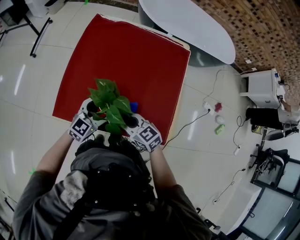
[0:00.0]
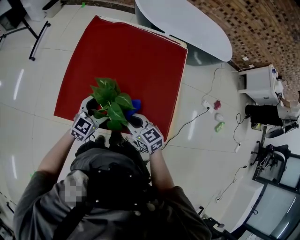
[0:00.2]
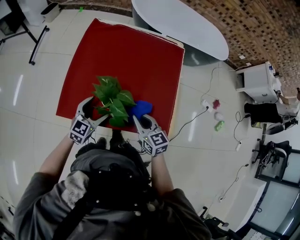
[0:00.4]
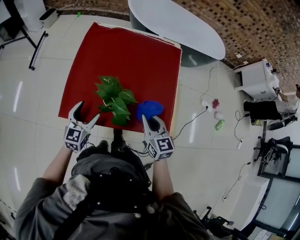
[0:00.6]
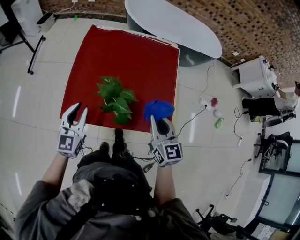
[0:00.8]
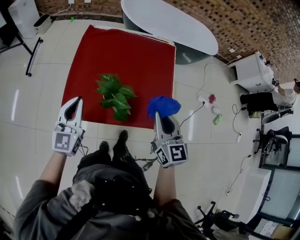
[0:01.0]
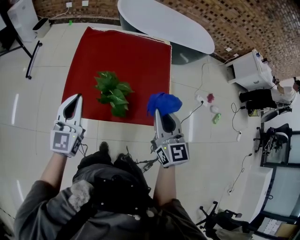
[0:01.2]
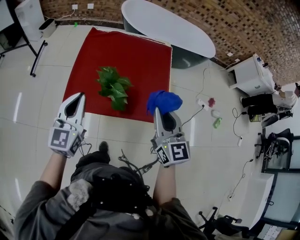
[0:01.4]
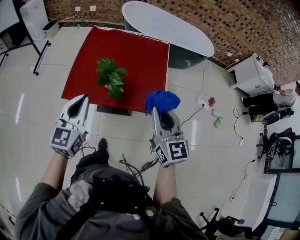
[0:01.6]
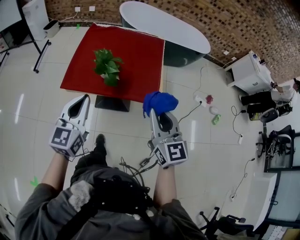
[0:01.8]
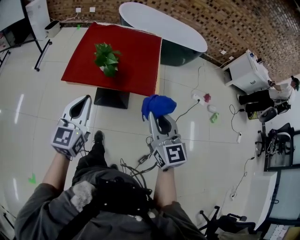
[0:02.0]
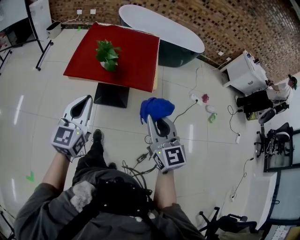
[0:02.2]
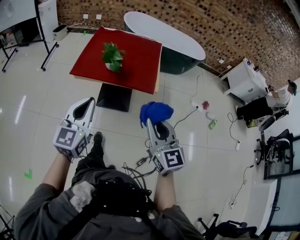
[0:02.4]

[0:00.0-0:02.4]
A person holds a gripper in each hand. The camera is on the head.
0:00.0 to 0:01.2: The right gripper heads upward and to the right, covering some 25 cm, and turns by approximately 50 degrees; the left gripper travels upward and to the left by approximately 25 cm, turns by approximately 30 degrees, and closes.
0:01.2 to 0:02.4: Both grippers are carried backward, roughly 50 cm.

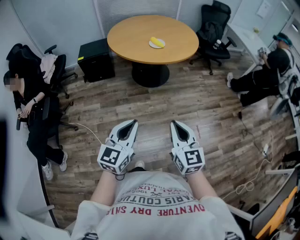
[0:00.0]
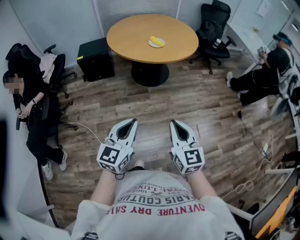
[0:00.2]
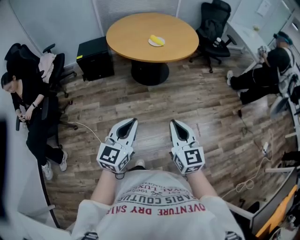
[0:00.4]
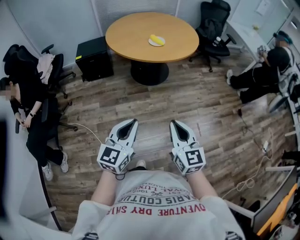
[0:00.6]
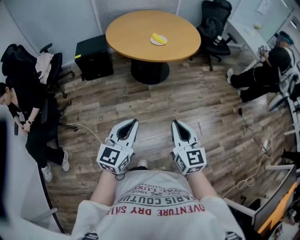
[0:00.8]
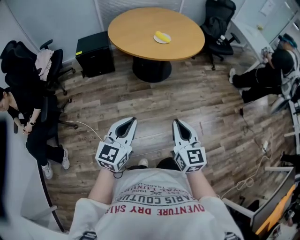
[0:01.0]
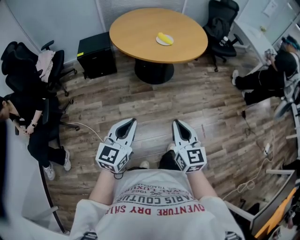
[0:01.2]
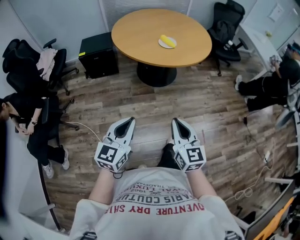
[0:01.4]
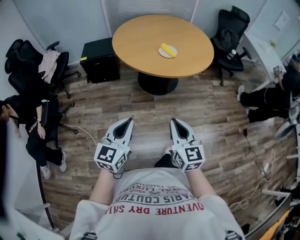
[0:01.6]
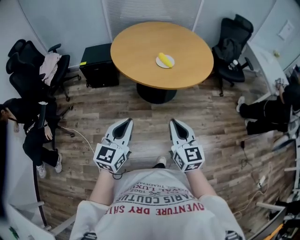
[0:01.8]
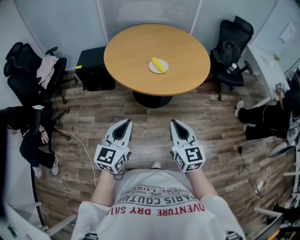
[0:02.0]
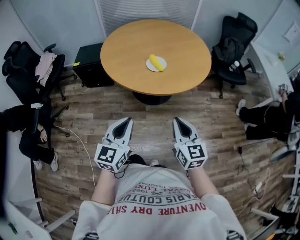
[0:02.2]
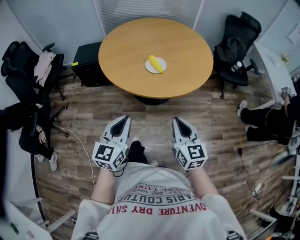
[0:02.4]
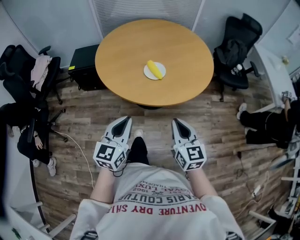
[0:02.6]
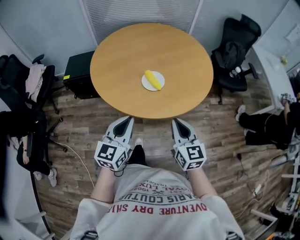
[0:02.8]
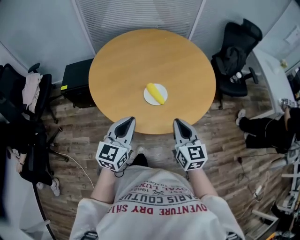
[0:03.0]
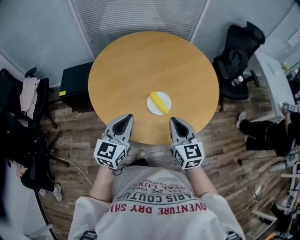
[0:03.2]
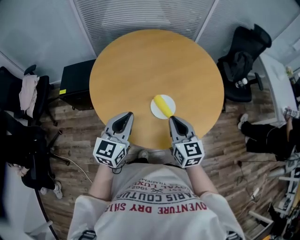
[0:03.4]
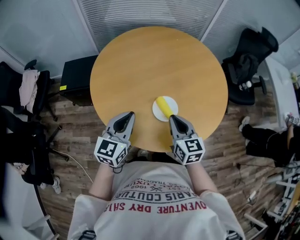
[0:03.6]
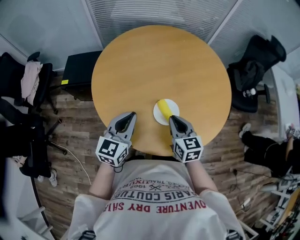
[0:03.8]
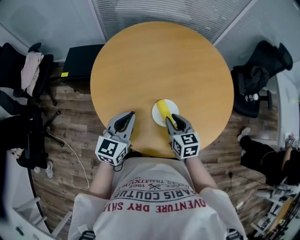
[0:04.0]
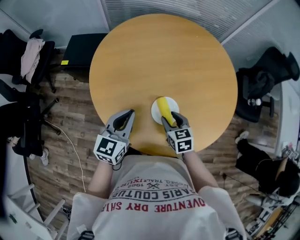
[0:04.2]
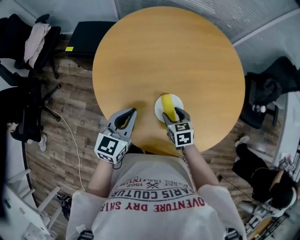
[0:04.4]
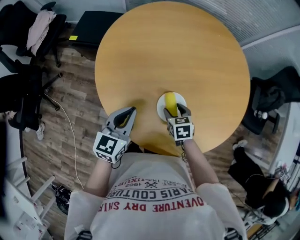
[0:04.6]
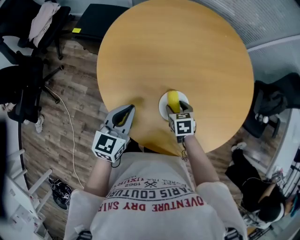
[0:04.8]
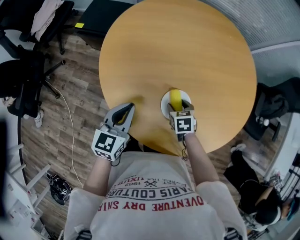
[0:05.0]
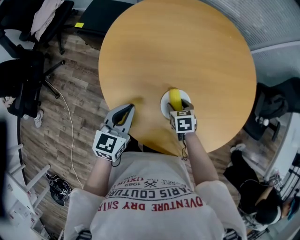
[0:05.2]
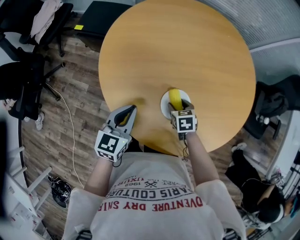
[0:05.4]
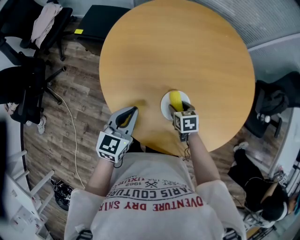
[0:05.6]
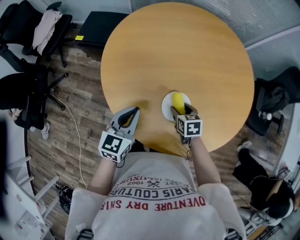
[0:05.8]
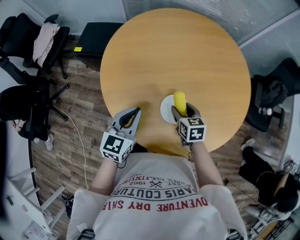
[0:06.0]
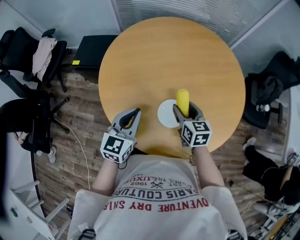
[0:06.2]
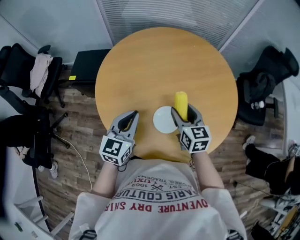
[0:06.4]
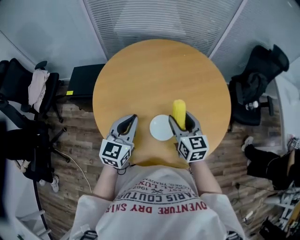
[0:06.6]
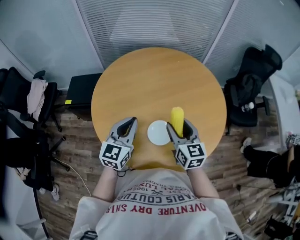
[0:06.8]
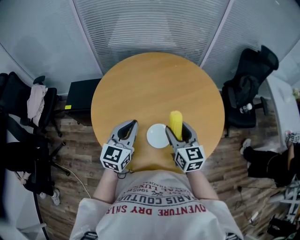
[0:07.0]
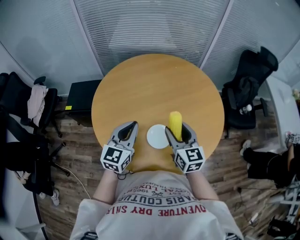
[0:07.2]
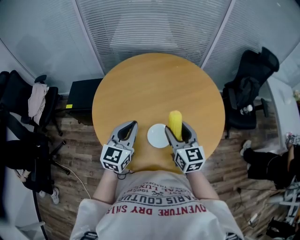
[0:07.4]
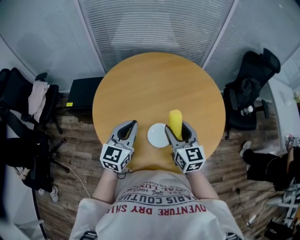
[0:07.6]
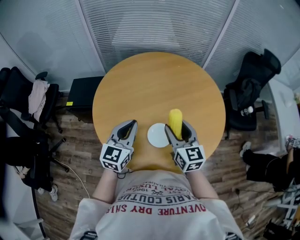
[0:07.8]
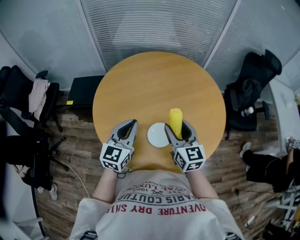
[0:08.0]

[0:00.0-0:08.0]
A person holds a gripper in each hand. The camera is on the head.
0:00.0 to 0:01.6: The grippers both shift forward by approximately 20 cm.
0:01.6 to 0:03.2: The pair of grippers is taken forward, about 50 cm.
0:03.2 to 0:04.8: The left gripper travels downward by some 10 cm, and turns by roughly 30 degrees; the right gripper shifts some 25 cm downward, points its fingers roughly 50 degrees further downward, and opens up.
0:04.8 to 0:06.4: The right gripper goes roughly 20 cm upward, and tilts its fingers about 40 degrees upward; the left gripper moves upward, approximately 10 cm.
0:06.4 to 0:08.0: The left gripper shifts about 5 cm upward; the right gripper goes roughly 10 cm upward.

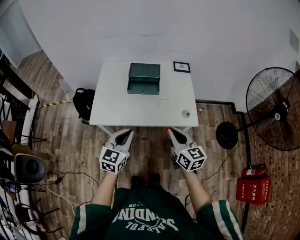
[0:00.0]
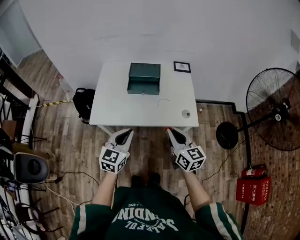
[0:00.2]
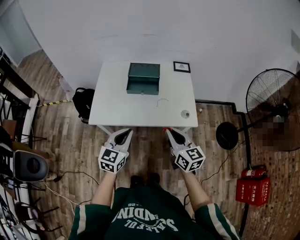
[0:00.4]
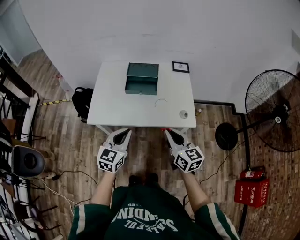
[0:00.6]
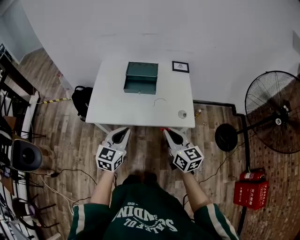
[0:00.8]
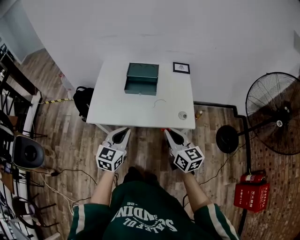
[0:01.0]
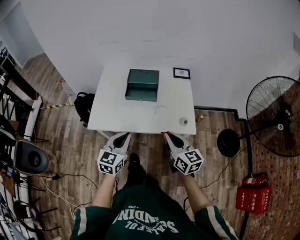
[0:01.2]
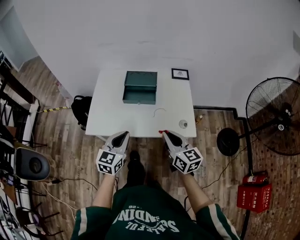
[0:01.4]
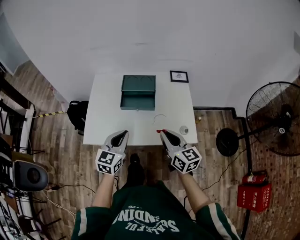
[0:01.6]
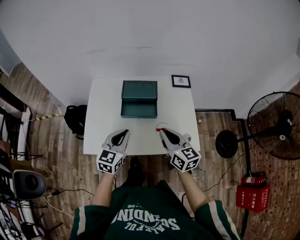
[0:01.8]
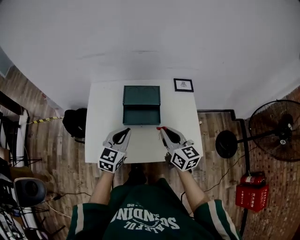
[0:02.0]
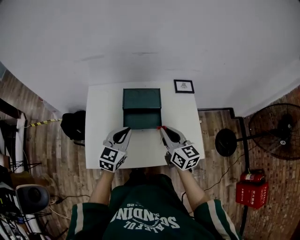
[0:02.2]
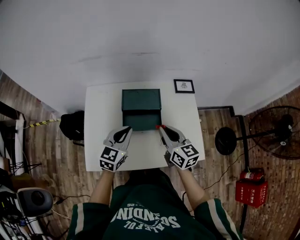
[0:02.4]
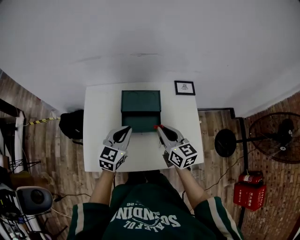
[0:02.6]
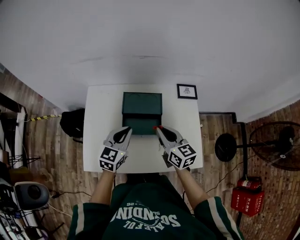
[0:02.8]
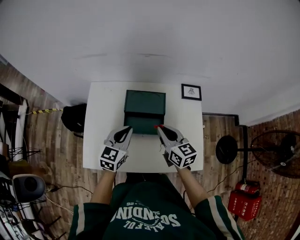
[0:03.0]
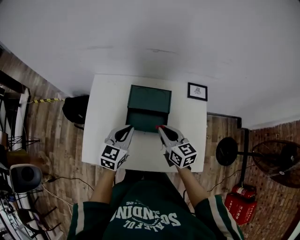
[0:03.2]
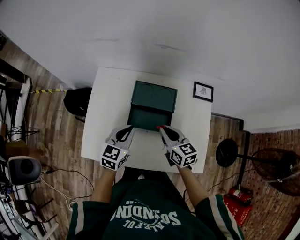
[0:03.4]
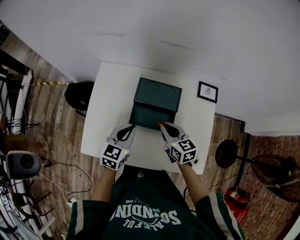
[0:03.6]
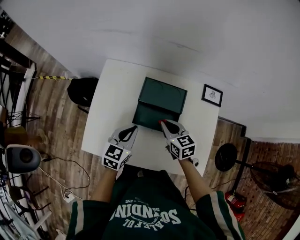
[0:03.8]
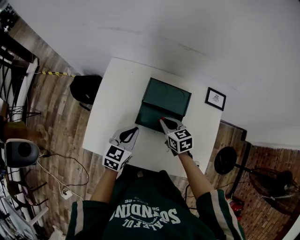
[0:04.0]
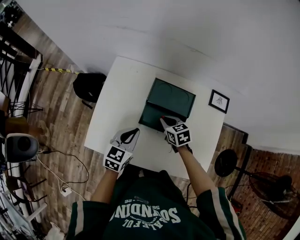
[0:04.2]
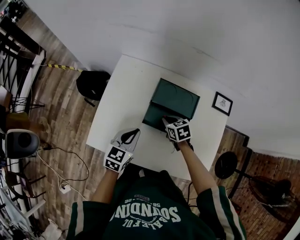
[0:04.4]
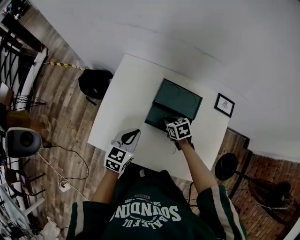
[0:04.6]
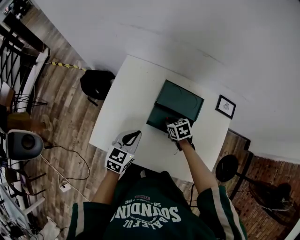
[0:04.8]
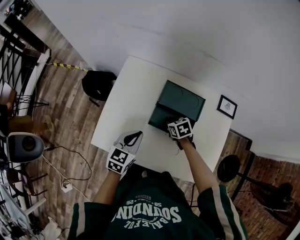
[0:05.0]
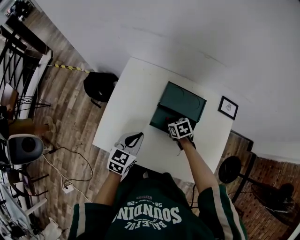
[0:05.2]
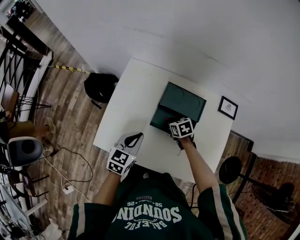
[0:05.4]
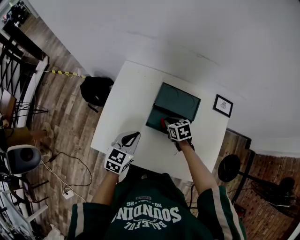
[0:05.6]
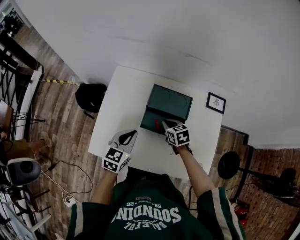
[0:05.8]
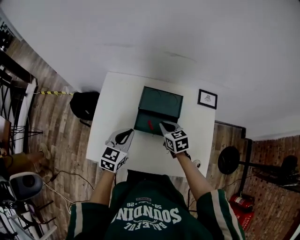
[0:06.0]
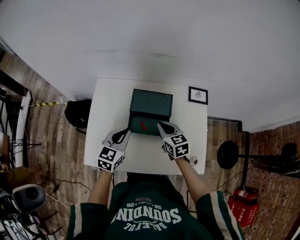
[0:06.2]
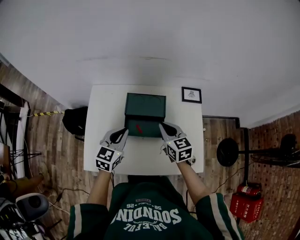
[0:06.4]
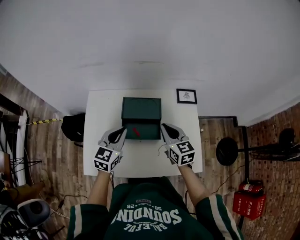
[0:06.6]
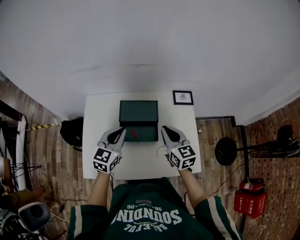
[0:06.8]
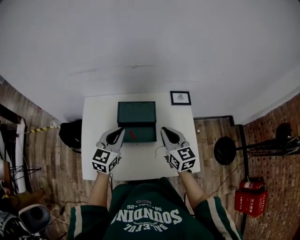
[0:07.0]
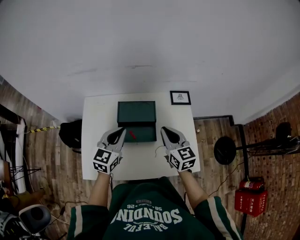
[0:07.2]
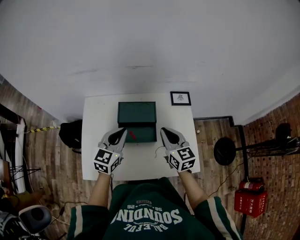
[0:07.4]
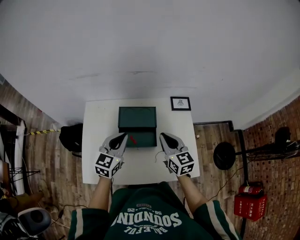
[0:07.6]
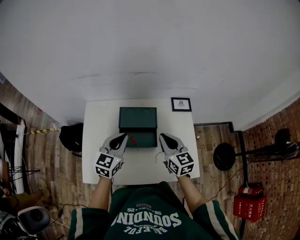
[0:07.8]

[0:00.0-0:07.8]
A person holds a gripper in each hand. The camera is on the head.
0:00.0 to 0:01.6: Both grippers move forward, about 10 cm.
0:01.6 to 0:03.2: Both grippers move forward, some 25 cm.
0:03.2 to 0:04.6: The right gripper moves downward, approximately 20 cm, and angles its fingers downward, by approximately 40 degrees; the left gripper travels to the left and downward by about 10 cm.
0:04.6 to 0:06.2: The left gripper travels upward by some 5 cm, while the right gripper shifts some 15 cm upward and to the right, and changes its angle by roughly 30 degrees.
0:06.2 to 0:07.8: The right gripper moves upward and to the right, about 10 cm, and changes its angle by about 20 degrees. Meanwhile the left gripper travels upward by approximately 5 cm.

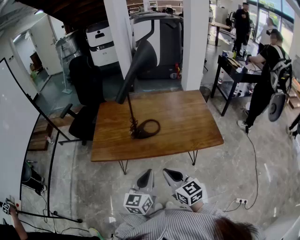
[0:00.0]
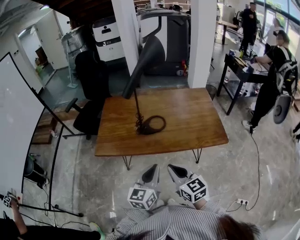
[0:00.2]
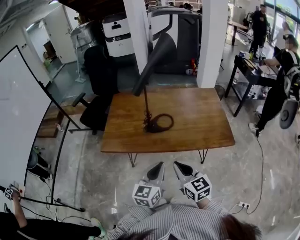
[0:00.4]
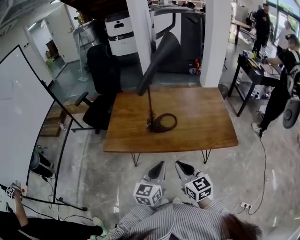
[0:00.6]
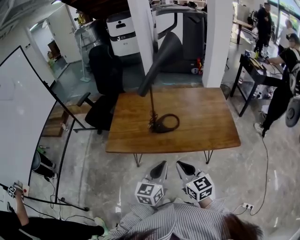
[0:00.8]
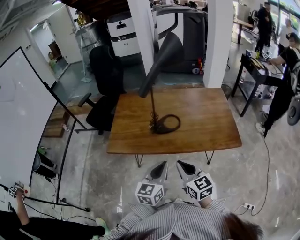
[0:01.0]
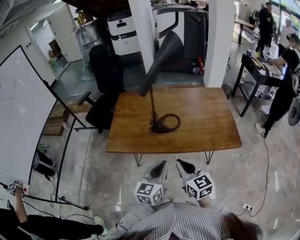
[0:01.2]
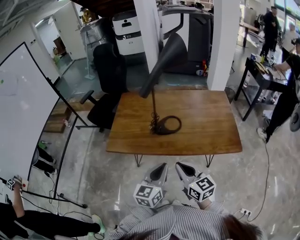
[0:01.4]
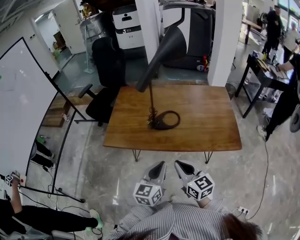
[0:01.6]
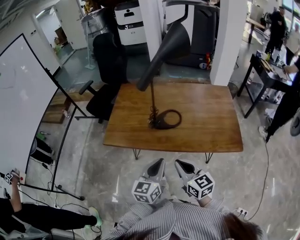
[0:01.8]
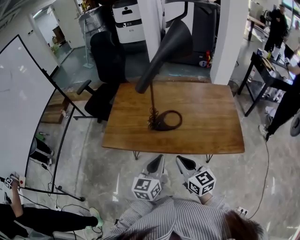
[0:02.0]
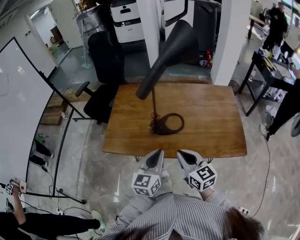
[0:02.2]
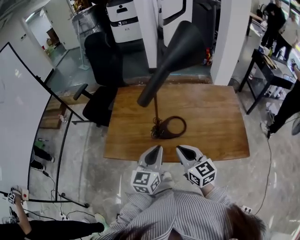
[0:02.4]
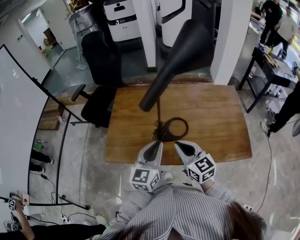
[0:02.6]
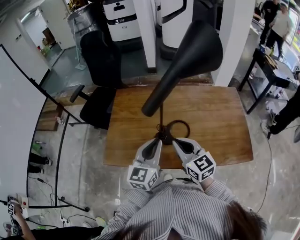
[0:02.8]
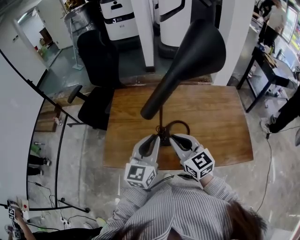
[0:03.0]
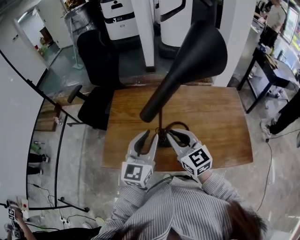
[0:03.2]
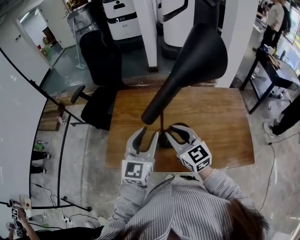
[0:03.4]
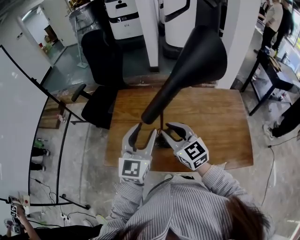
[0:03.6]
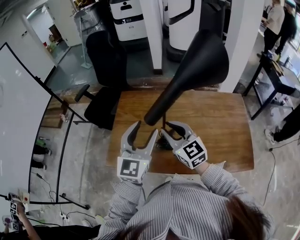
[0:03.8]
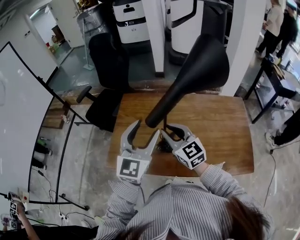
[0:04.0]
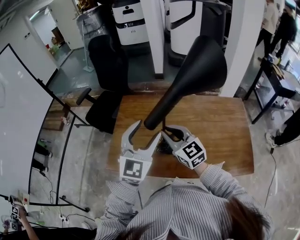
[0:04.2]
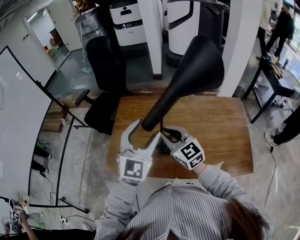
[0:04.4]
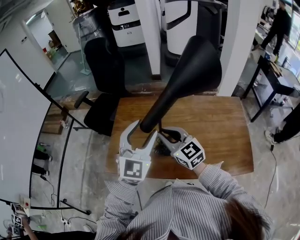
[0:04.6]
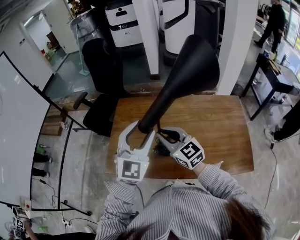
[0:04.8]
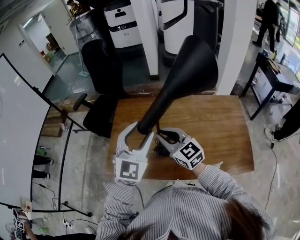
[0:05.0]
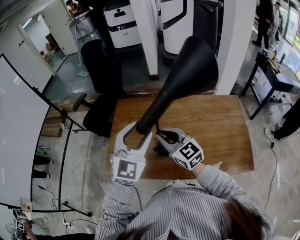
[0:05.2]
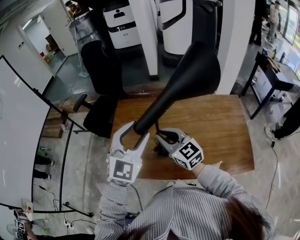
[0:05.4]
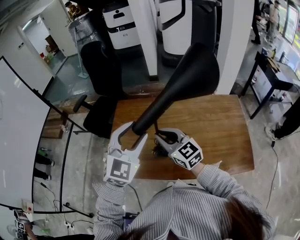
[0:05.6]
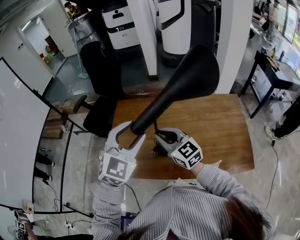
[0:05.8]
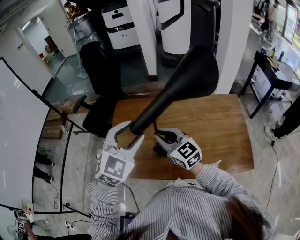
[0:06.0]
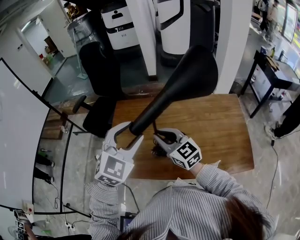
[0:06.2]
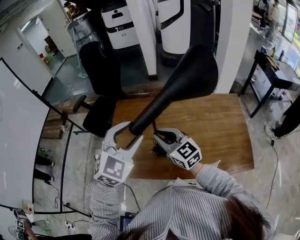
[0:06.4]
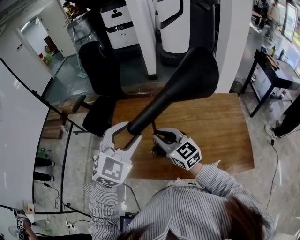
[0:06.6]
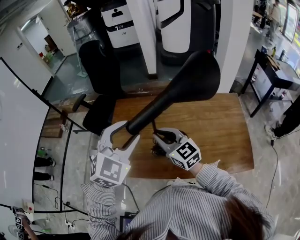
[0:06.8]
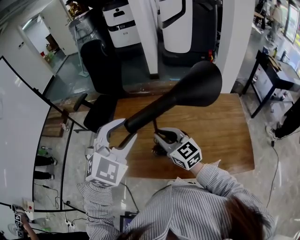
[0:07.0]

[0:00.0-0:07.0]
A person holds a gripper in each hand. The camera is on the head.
0:00.0 to 0:01.4: There are only small adjustments of the grippers.
0:01.4 to 0:02.8: The grippers both shift forward by roughly 25 cm.
0:02.8 to 0:04.2: The left gripper goes roughly 10 cm upward and forward, turns by approximately 30 degrees, and opens up. Meanwhile the right gripper goes about 10 cm forward.
0:04.2 to 0:05.6: The grippers make only small movements.
0:05.6 to 0:07.0: The grippers move only a little.
